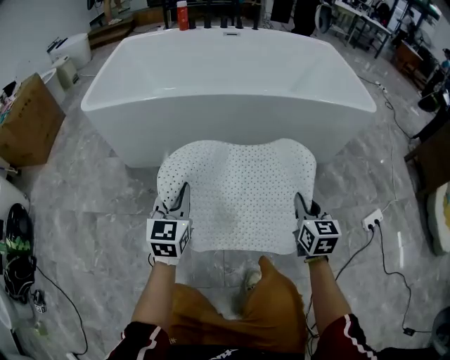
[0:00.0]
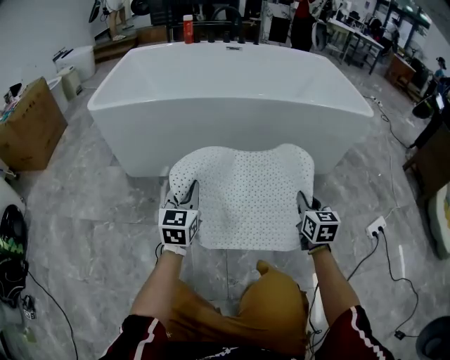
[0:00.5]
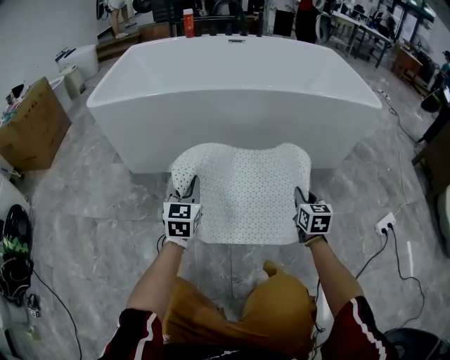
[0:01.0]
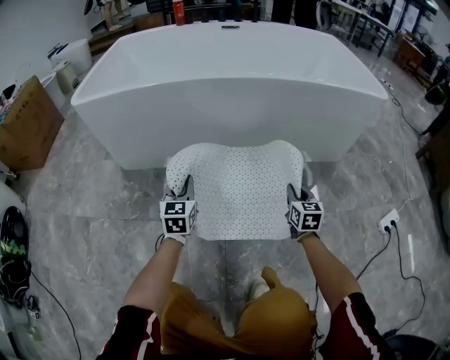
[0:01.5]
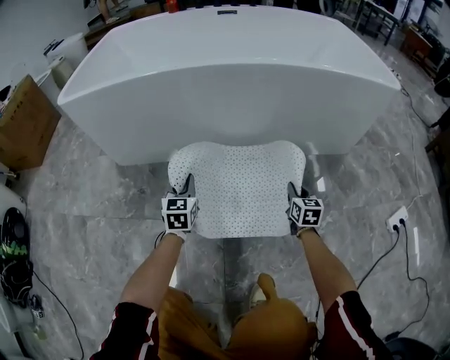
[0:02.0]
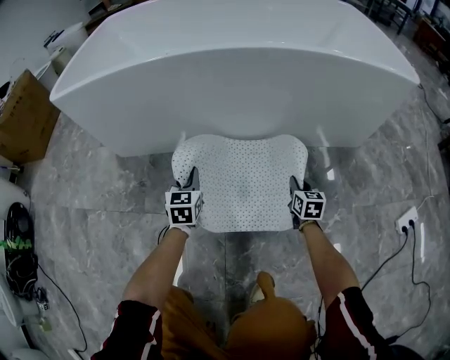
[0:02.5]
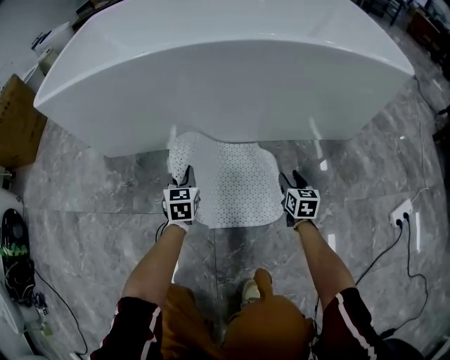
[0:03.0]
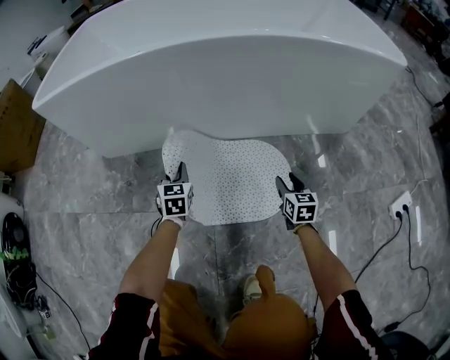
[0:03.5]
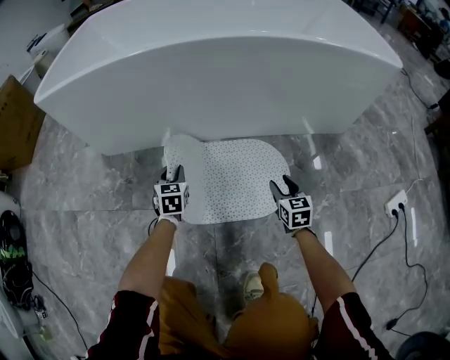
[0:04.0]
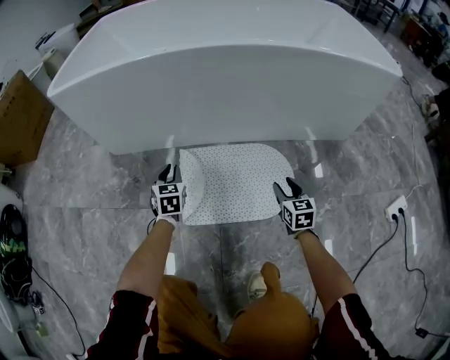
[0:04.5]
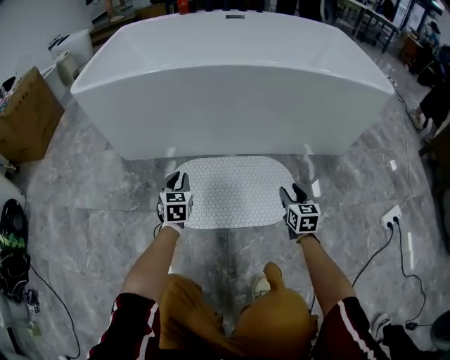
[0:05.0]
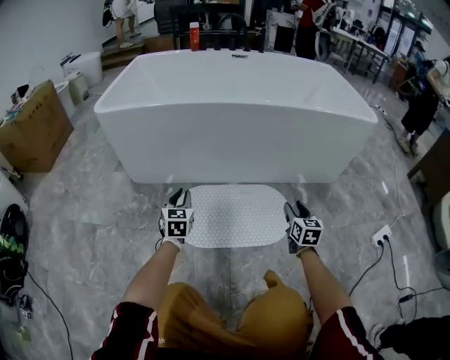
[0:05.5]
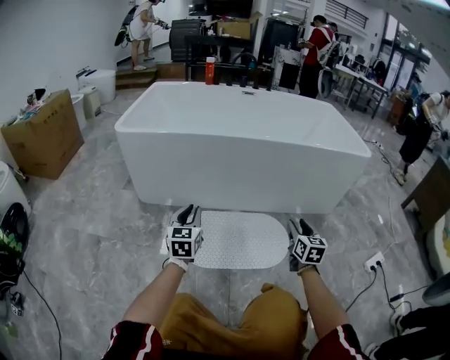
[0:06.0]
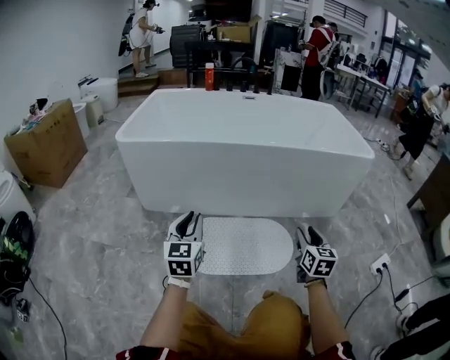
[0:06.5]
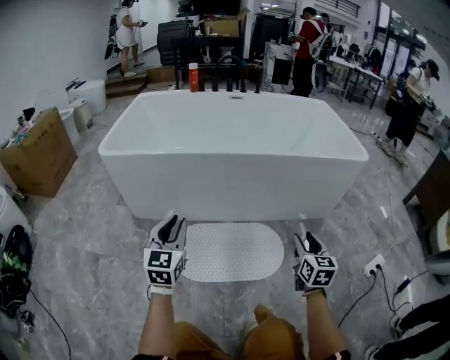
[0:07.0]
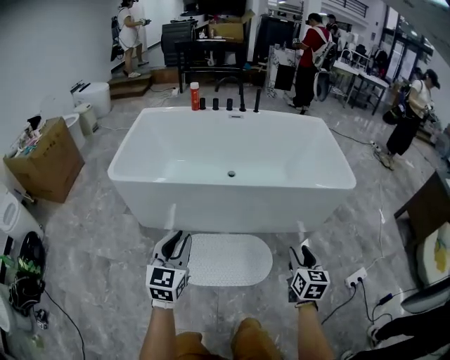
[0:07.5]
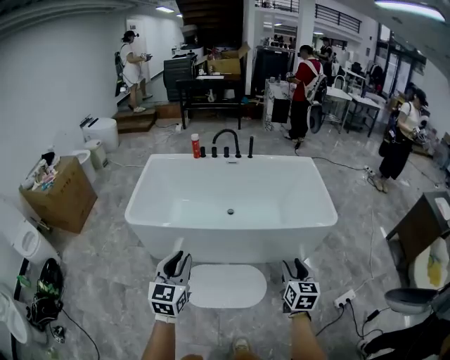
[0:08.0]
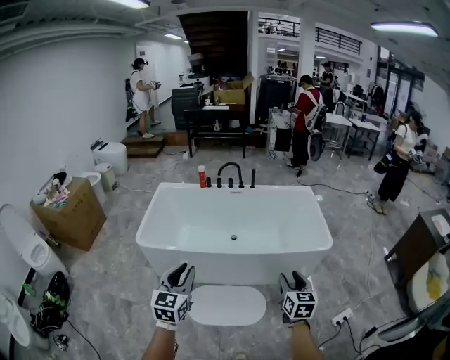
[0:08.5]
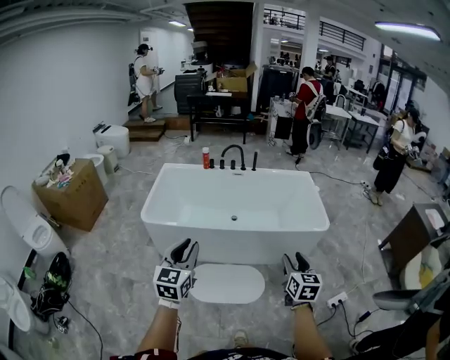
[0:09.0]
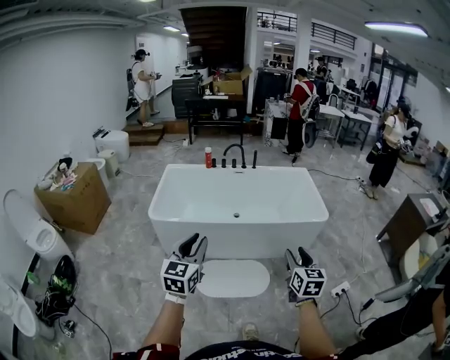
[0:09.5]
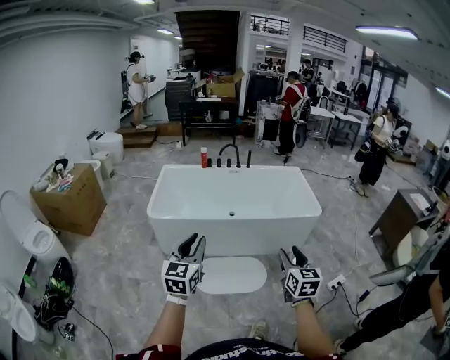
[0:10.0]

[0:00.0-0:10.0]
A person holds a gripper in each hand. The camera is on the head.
0:00.0 to 0:02.0: Both grippers travel together downward and forward, some 30 cm.
0:02.0 to 0:04.0: The left gripper travels downward by approximately 10 cm. The right gripper opens its fingers.
0:04.0 to 0:06.0: The left gripper heads upward and backward, covering approximately 30 cm, and changes its angle by roughly 20 degrees; the right gripper travels upward by roughly 25 cm.
0:06.0 to 0:08.0: The two grippers go some 50 cm upward.
0:08.0 to 0:10.0: The grippers both shift backward and upward by roughly 30 cm.

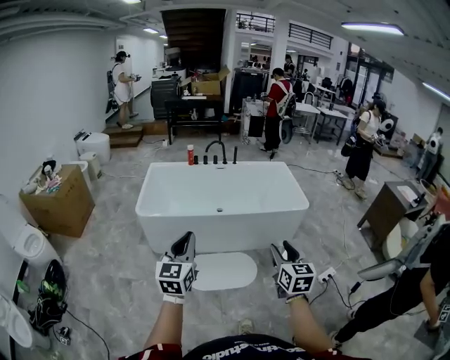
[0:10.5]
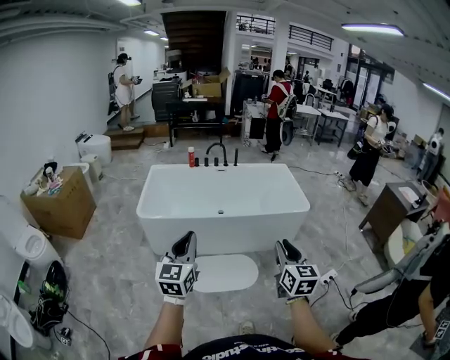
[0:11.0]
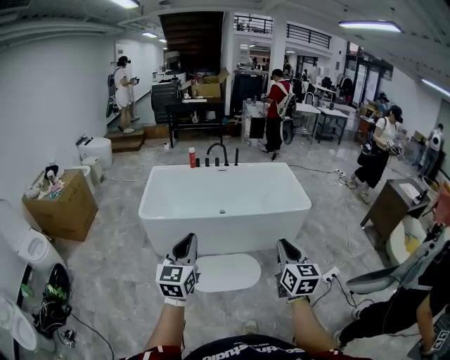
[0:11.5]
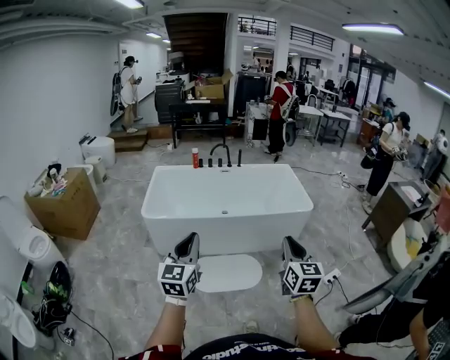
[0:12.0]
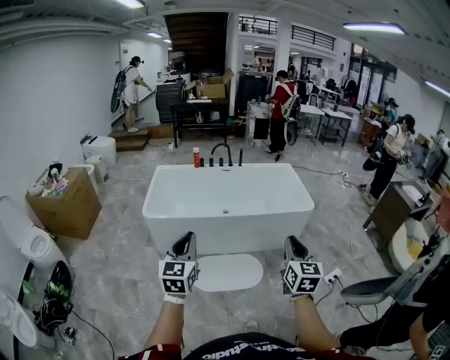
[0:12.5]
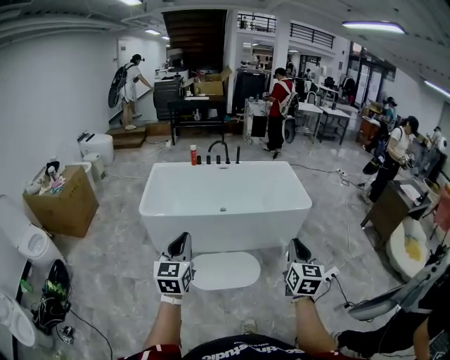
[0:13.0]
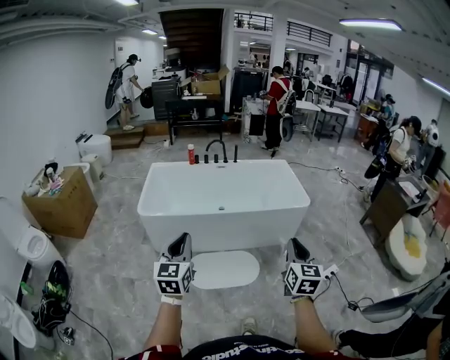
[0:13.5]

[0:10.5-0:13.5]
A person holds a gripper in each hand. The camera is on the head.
0:10.5 to 0:12.0: The right gripper closes up.
0:12.0 to 0:13.5: The right gripper changes place by some 5 cm.

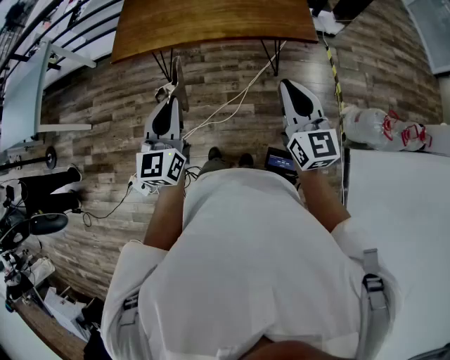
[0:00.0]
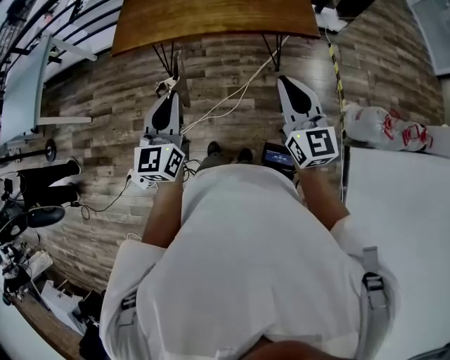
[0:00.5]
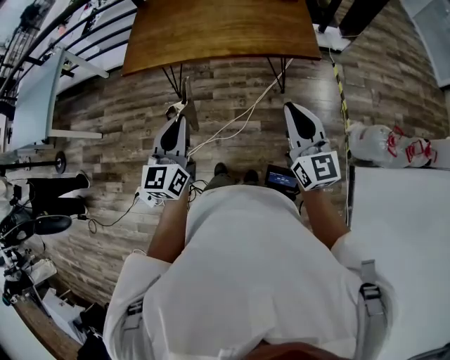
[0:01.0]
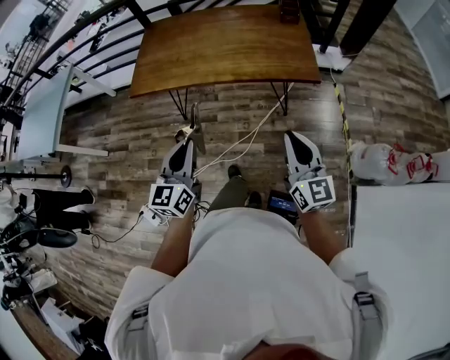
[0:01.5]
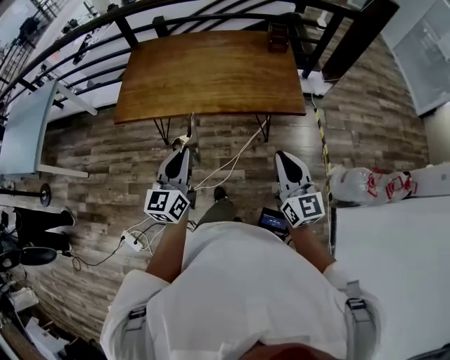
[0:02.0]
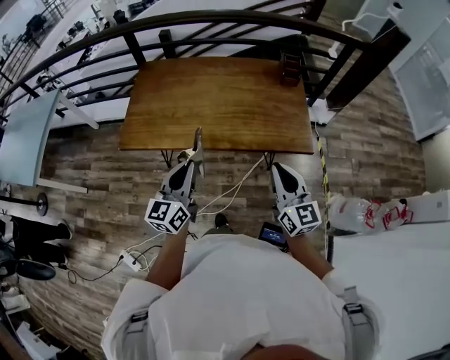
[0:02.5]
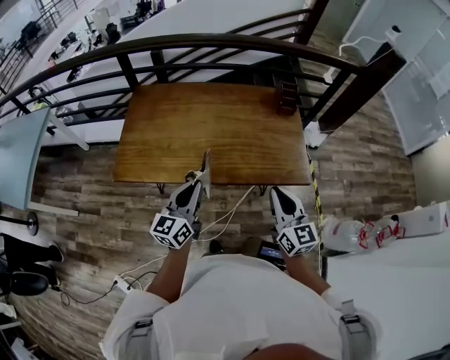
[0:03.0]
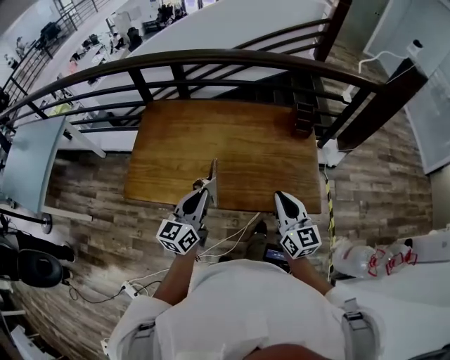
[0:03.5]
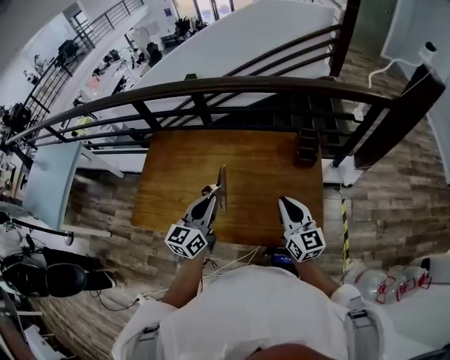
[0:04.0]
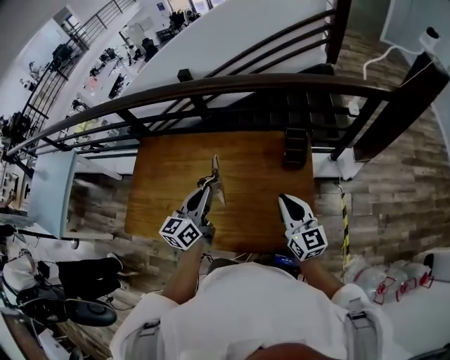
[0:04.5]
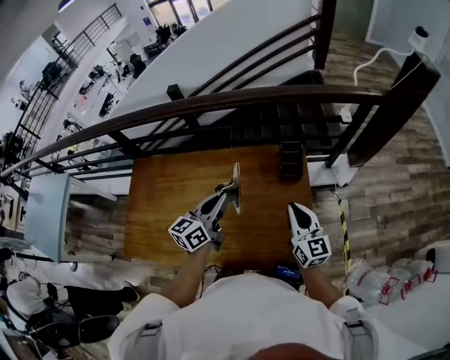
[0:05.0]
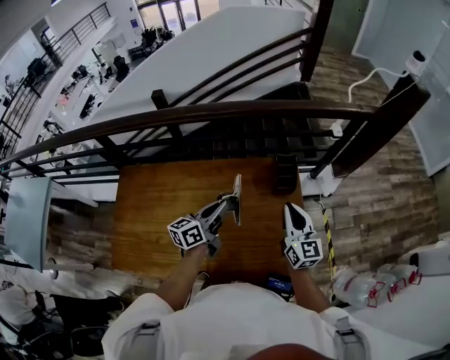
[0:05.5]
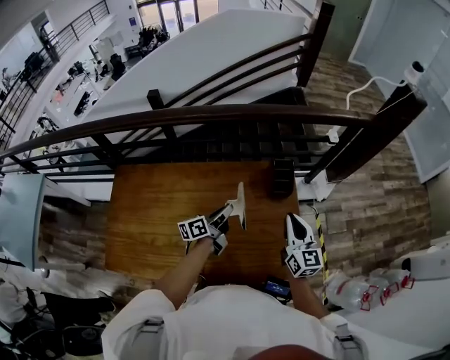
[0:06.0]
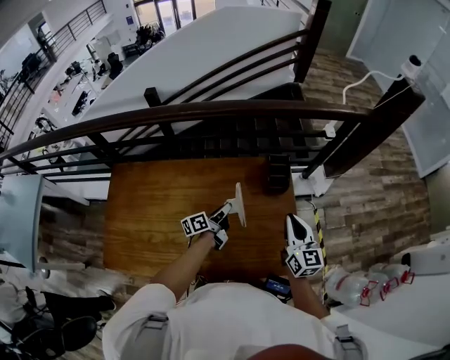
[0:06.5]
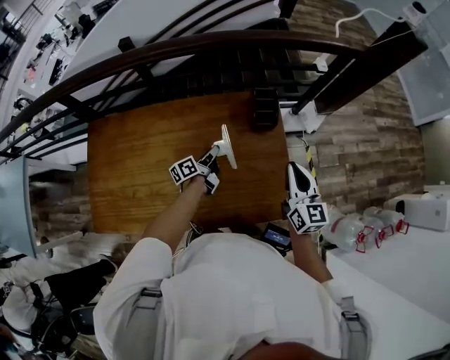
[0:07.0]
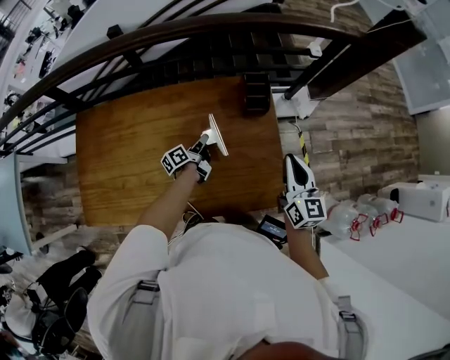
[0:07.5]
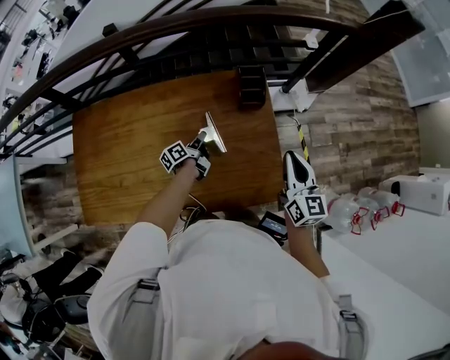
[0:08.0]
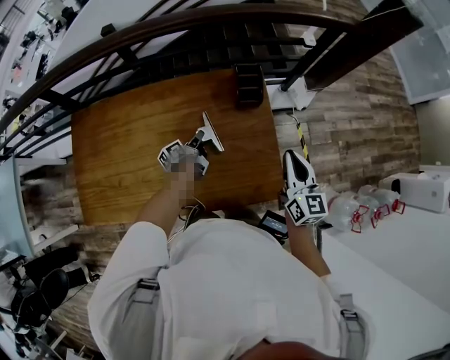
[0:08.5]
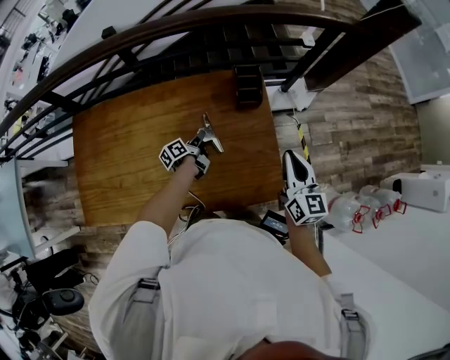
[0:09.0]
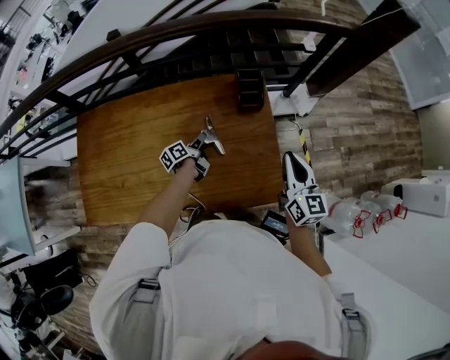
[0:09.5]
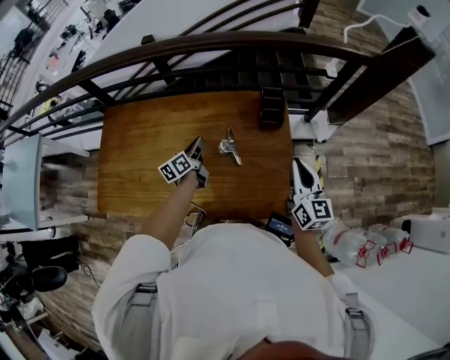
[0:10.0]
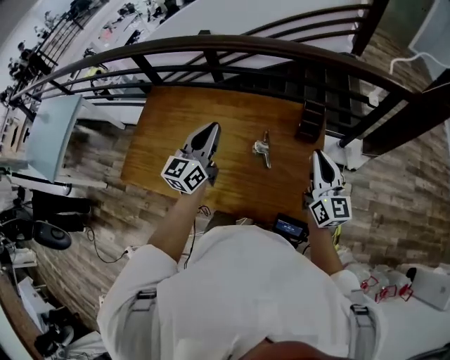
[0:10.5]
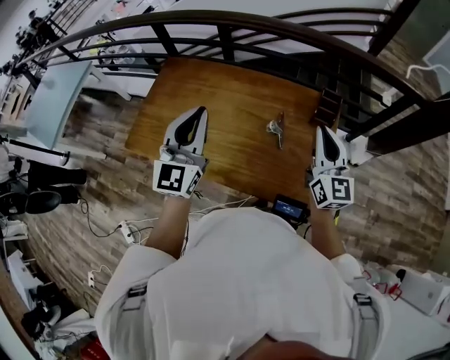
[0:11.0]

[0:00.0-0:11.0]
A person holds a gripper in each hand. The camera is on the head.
0:00.0 to 0:02.0: The right gripper moves forward, about 5 cm. Meanwhile the left gripper heads forward, covering approximately 10 cm.
0:02.0 to 0:03.5: The grippers both shift forward by roughly 30 cm.
0:03.5 to 0:05.5: The two grippers go approximately 35 cm forward and to the right. The left gripper rotates about 30 degrees.
0:05.5 to 0:07.5: The right gripper travels to the right and downward by approximately 10 cm; the left gripper goes roughly 25 cm downward, and turns by approximately 40 degrees.
0:07.5 to 0:09.0: There are only small adjustments of the grippers.
0:09.0 to 0:11.0: The left gripper shifts some 40 cm upward, and twists roughly 80 degrees clockwise, seen from behind. The right gripper moves approximately 20 cm, and rotates roughly 30 degrees.

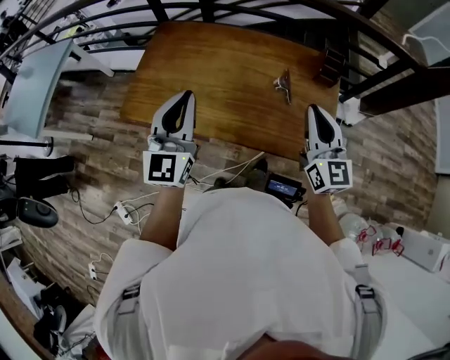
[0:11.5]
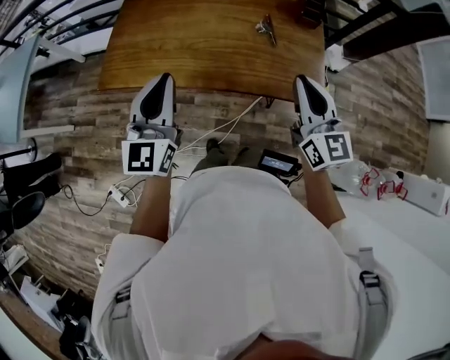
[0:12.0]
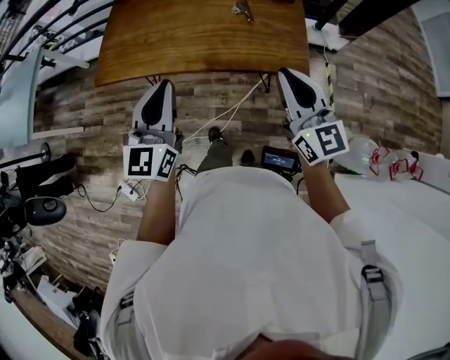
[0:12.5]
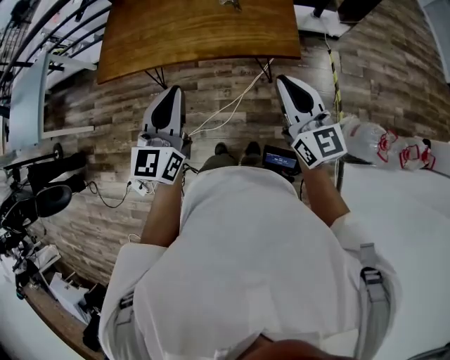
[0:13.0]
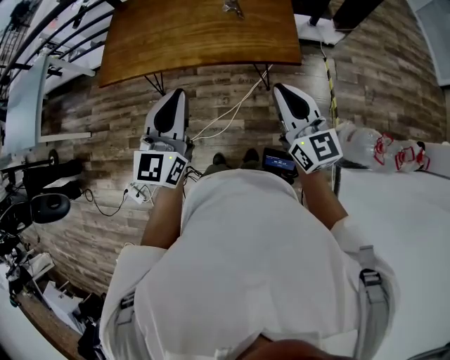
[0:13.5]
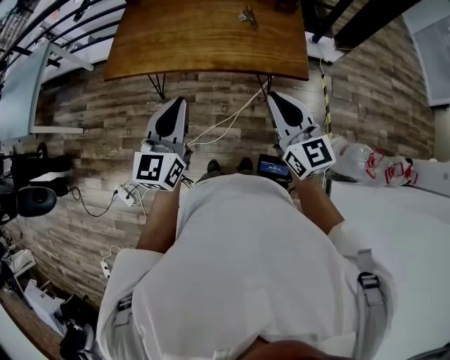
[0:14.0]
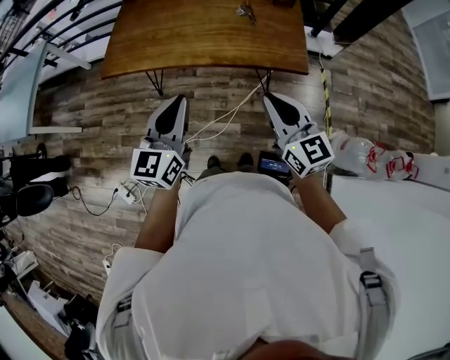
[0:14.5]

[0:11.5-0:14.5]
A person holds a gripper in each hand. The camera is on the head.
0:11.5 to 0:13.0: The left gripper shifts roughly 35 cm backward and to the right, while the right gripper travels backward by roughly 30 cm.
0:13.0 to 0:14.5: Both grippers move to the left, some 10 cm.
